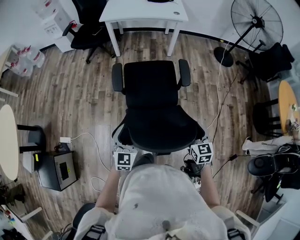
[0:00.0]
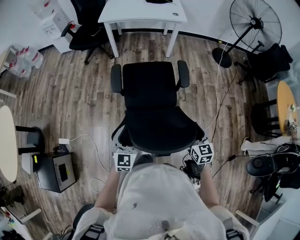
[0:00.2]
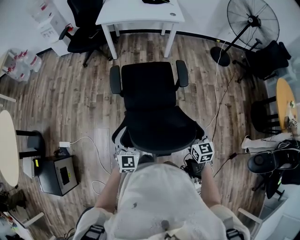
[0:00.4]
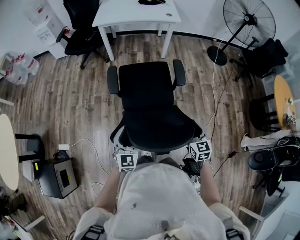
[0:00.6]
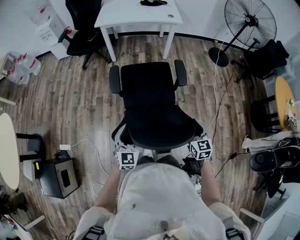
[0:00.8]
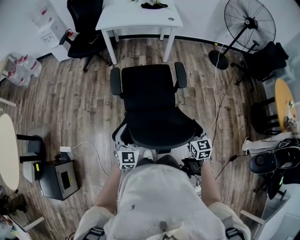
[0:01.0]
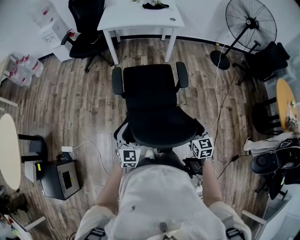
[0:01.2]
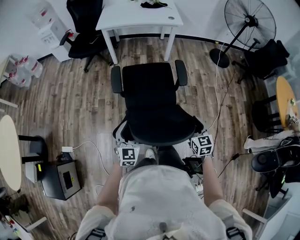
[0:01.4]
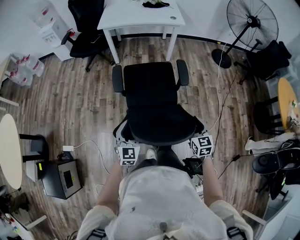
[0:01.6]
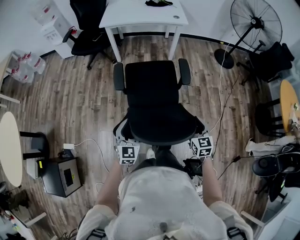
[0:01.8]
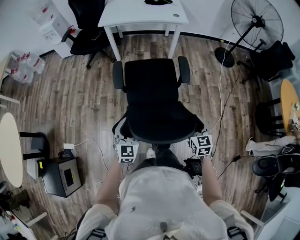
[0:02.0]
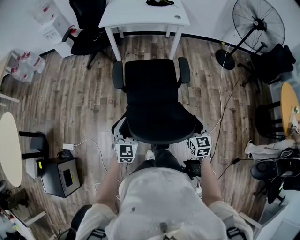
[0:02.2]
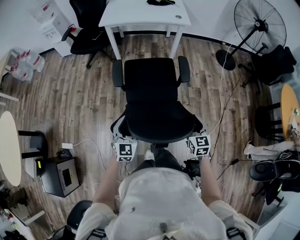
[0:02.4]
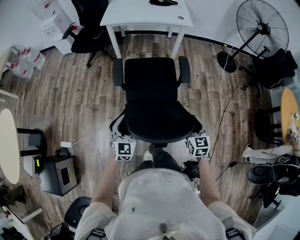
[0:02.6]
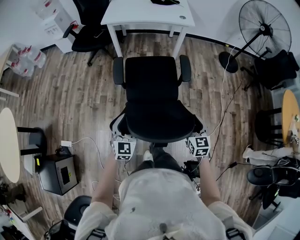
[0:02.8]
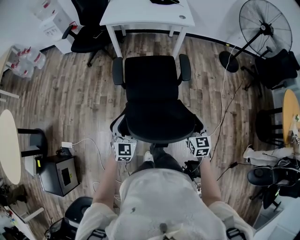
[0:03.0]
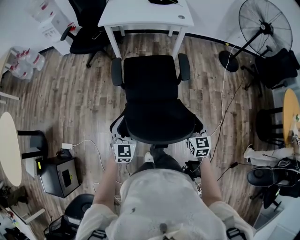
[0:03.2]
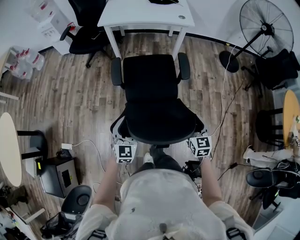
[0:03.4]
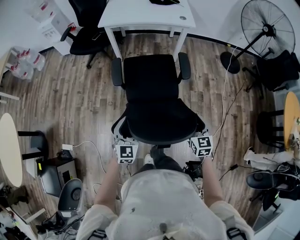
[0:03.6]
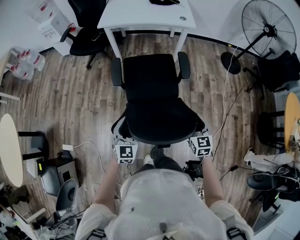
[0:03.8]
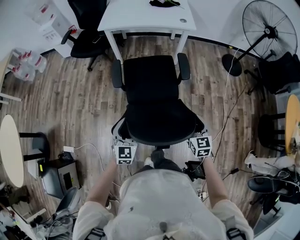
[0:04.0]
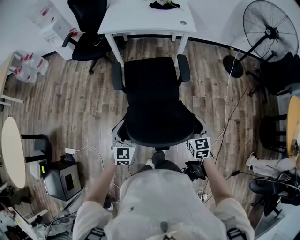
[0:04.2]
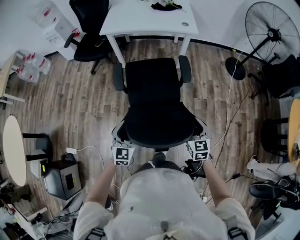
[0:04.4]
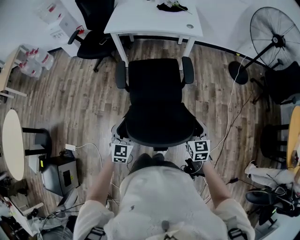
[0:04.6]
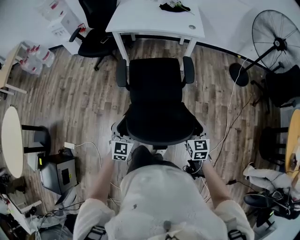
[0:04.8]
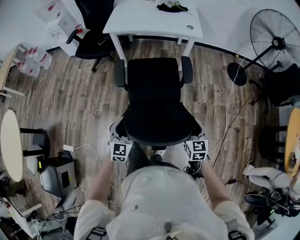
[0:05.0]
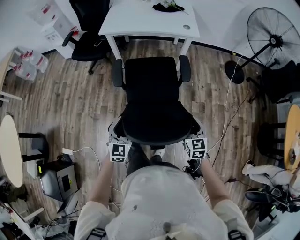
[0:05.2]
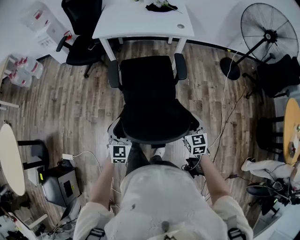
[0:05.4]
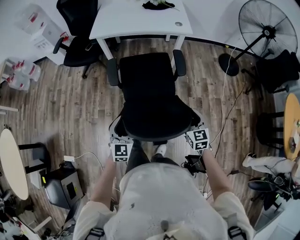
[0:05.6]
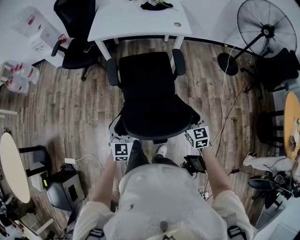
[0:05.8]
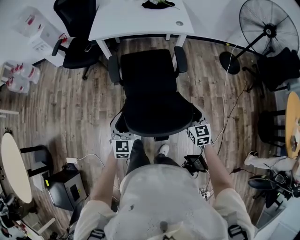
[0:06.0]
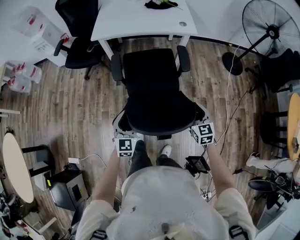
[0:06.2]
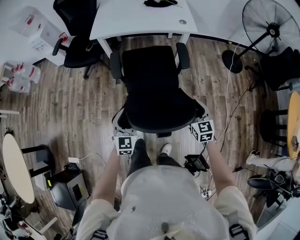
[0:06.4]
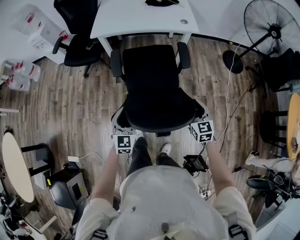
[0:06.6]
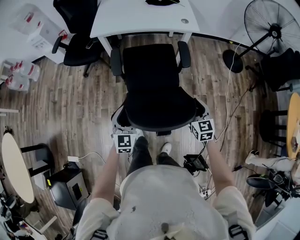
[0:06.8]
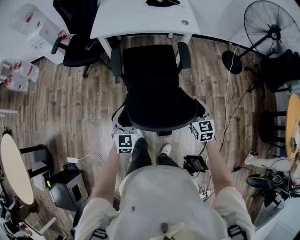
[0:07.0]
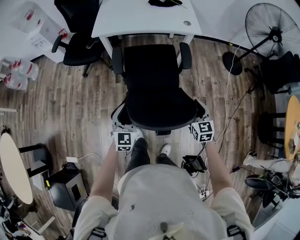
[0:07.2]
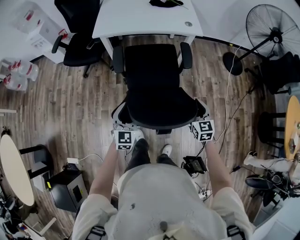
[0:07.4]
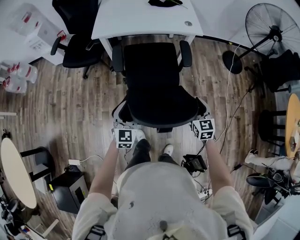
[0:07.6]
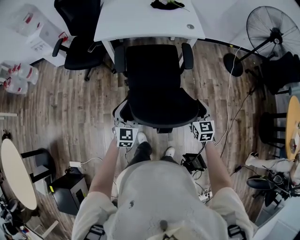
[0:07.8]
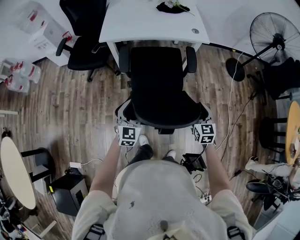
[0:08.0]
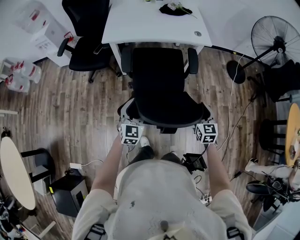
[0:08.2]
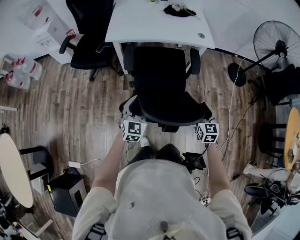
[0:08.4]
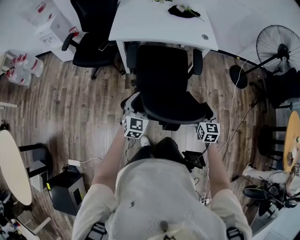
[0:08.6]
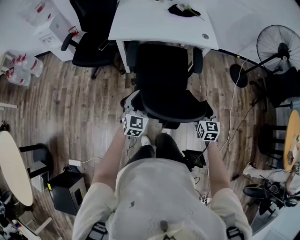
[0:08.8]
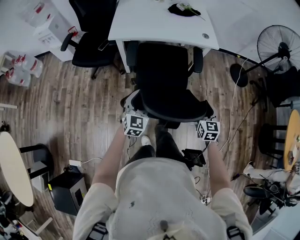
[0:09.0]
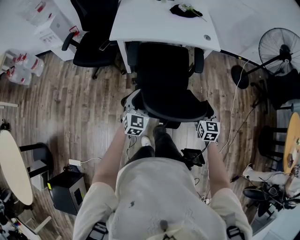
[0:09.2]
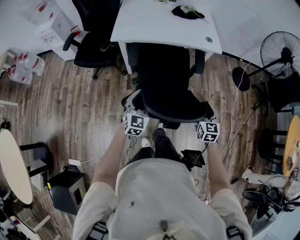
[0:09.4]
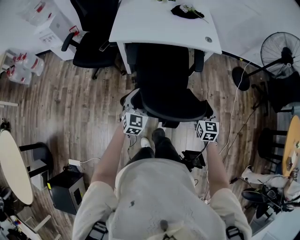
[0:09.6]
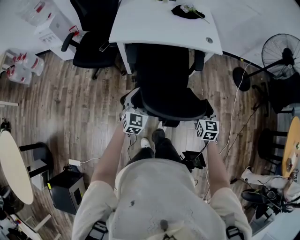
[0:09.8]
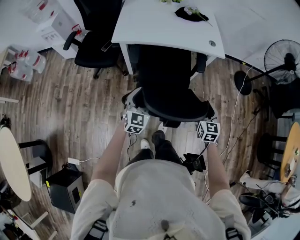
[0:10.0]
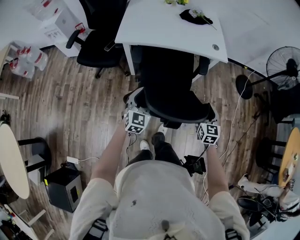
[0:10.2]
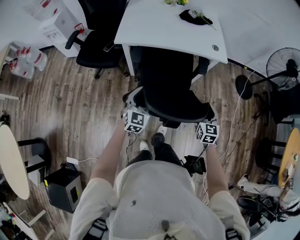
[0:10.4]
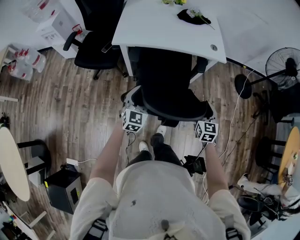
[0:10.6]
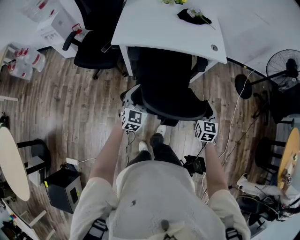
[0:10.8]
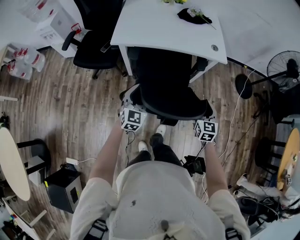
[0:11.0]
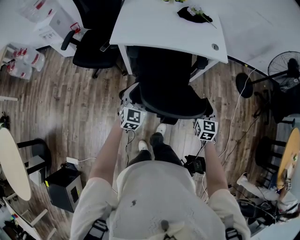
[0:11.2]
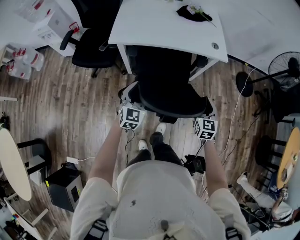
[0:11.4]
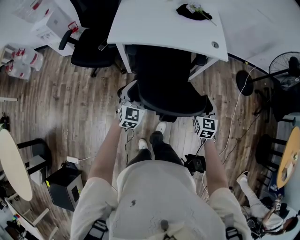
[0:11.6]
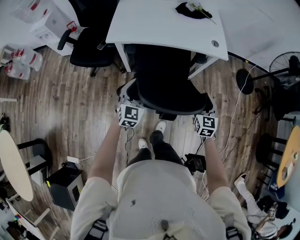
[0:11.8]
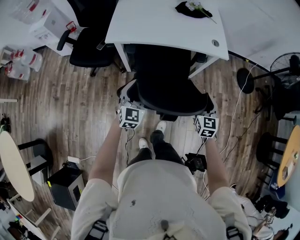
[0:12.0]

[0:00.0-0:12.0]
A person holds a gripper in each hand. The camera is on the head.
0:00.0 to 0:01.6: The grippers both shift forward by roughly 5 cm.
0:01.6 to 0:03.0: The two grippers go approximately 15 cm forward.
0:03.0 to 0:04.4: The two grippers go roughly 15 cm forward and to the right.
0:04.4 to 0:06.0: The two grippers go about 20 cm forward.
0:06.0 to 0:07.6: The two grippers go roughly 15 cm forward and to the left.
0:07.6 to 0:09.0: The right gripper heads to the left and forward, covering about 10 cm, while the left gripper shifts roughly 15 cm forward and to the left.
0:09.0 to 0:10.4: Both grippers travel together forward, approximately 15 cm.
0:10.4 to 0:12.0: Both grippers travel together forward, some 10 cm.

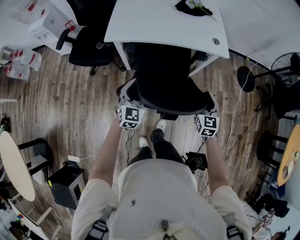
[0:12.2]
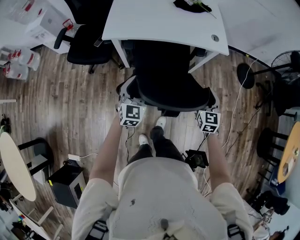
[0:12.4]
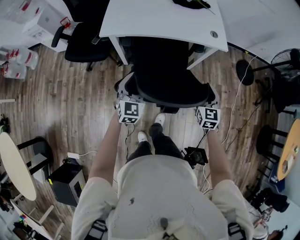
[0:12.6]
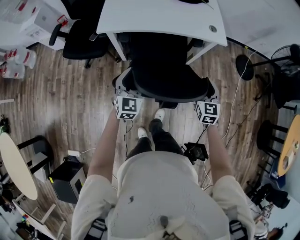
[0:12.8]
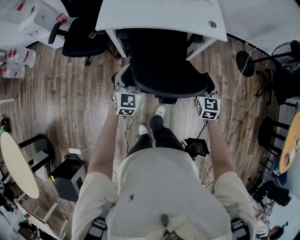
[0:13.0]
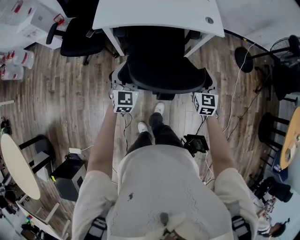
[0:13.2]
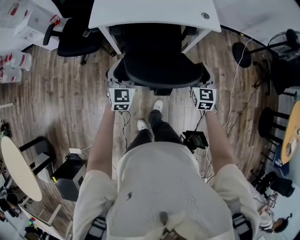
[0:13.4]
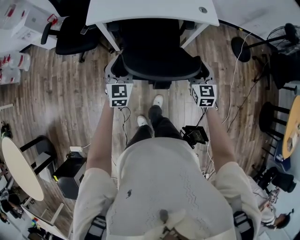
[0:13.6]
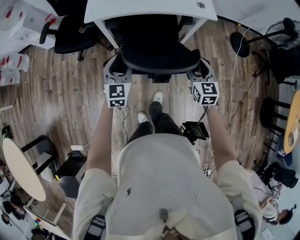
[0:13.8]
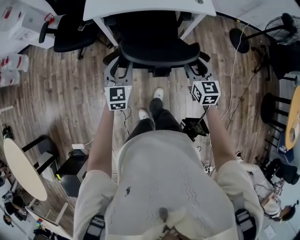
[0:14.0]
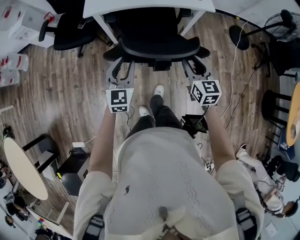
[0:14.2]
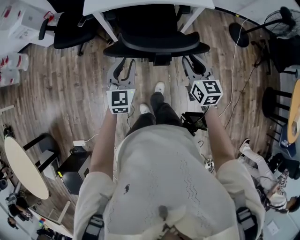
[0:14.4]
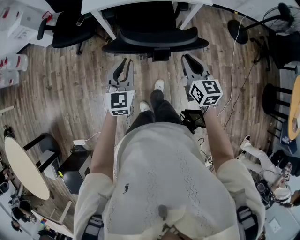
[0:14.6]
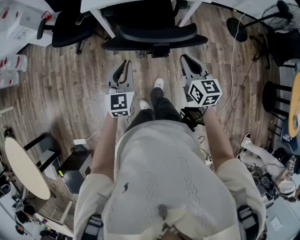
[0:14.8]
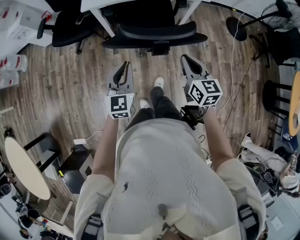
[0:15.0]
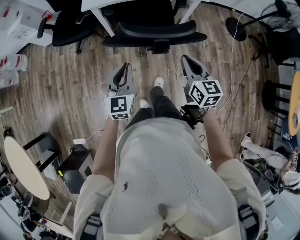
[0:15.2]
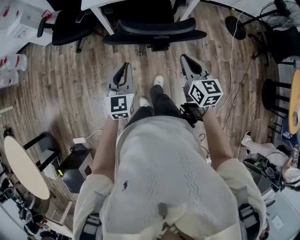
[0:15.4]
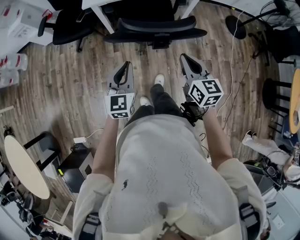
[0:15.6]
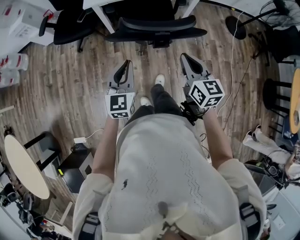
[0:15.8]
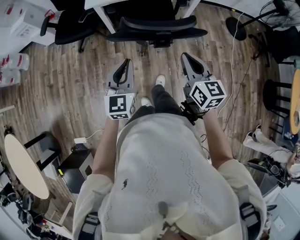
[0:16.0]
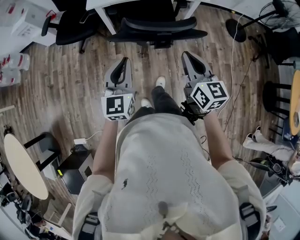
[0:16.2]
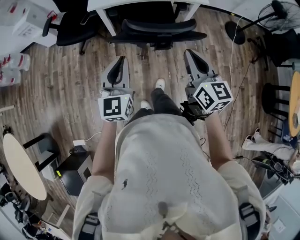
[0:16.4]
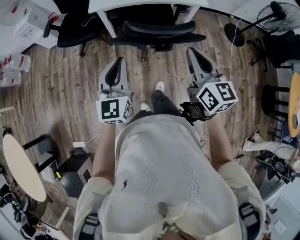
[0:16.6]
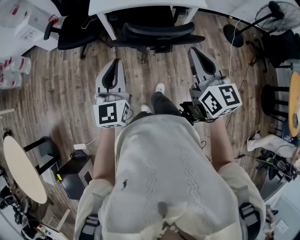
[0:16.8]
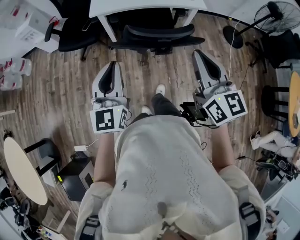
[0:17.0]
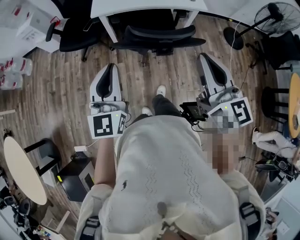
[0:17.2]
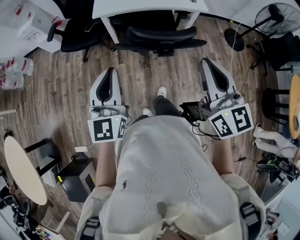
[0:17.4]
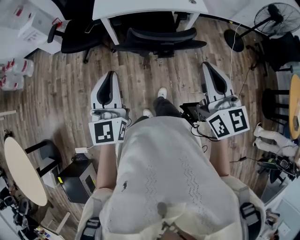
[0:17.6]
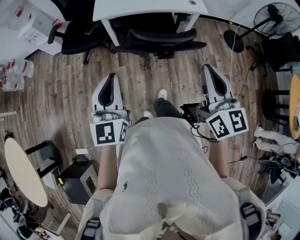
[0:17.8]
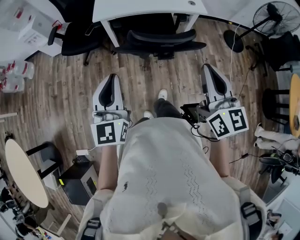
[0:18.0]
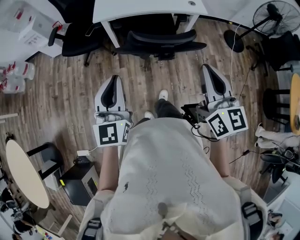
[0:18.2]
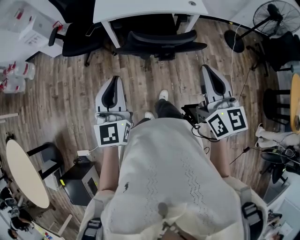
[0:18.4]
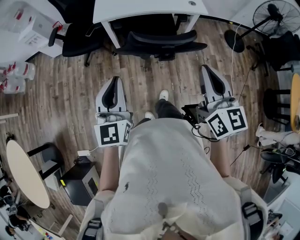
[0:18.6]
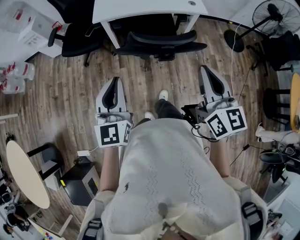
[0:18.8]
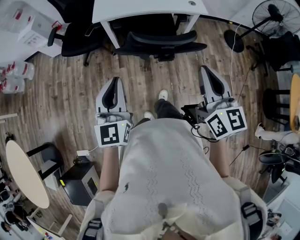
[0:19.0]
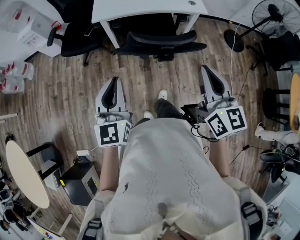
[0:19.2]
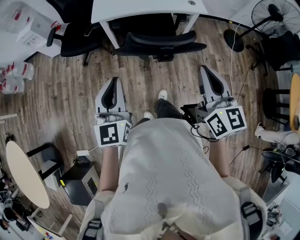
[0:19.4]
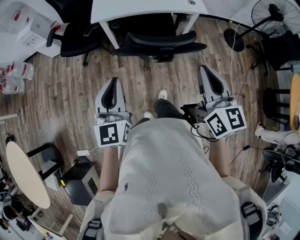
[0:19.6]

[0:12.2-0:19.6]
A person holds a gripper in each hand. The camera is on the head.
0:12.2 to 0:13.6: There are only small adjustments of the grippers.
0:13.6 to 0:15.2: The grippers both shift backward by about 25 cm. The right gripper swivels roughly 20 degrees, and closes its fingers. Meanwhile the left gripper closes its fingers.
0:15.2 to 0:16.6: The grippers both shift upward and backward by some 15 cm.
0:16.6 to 0:18.2: The right gripper travels upward and backward by roughly 10 cm, while the left gripper goes some 5 cm upward.
0:18.2 to 0:19.6: The grippers move only a little.

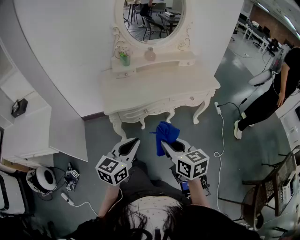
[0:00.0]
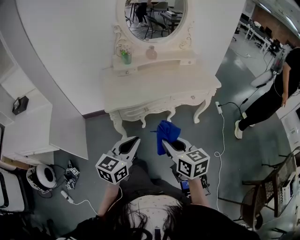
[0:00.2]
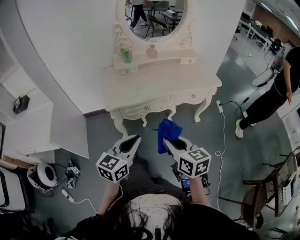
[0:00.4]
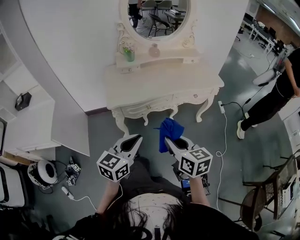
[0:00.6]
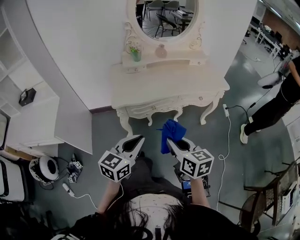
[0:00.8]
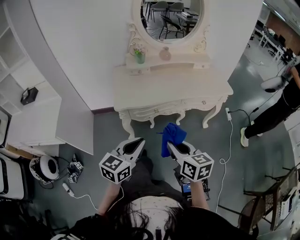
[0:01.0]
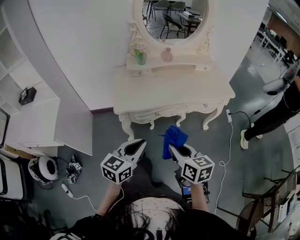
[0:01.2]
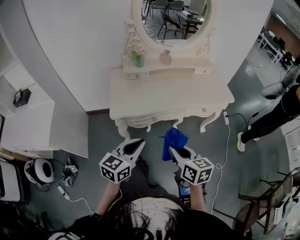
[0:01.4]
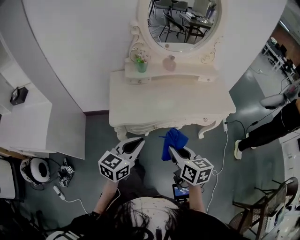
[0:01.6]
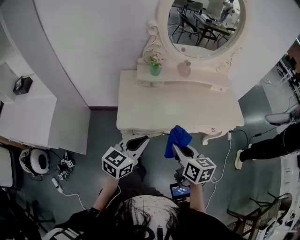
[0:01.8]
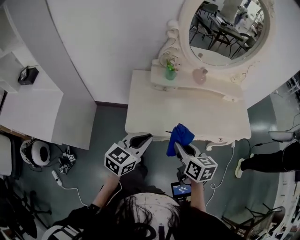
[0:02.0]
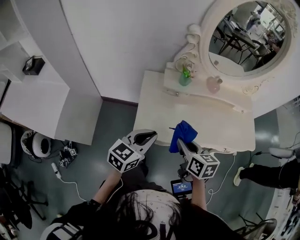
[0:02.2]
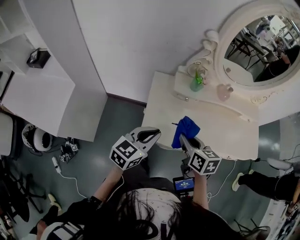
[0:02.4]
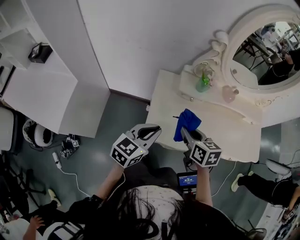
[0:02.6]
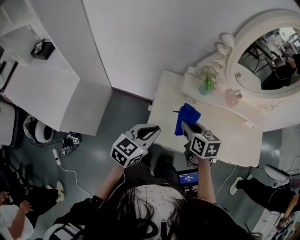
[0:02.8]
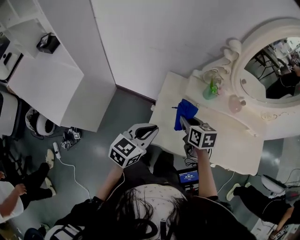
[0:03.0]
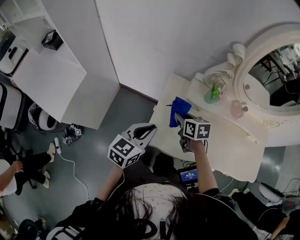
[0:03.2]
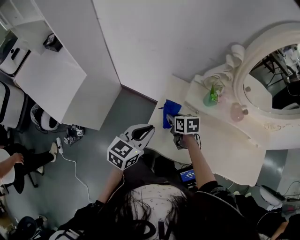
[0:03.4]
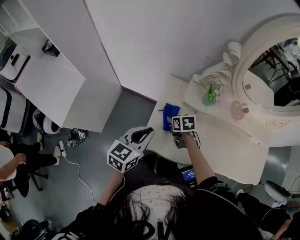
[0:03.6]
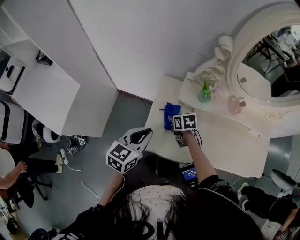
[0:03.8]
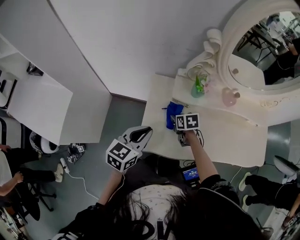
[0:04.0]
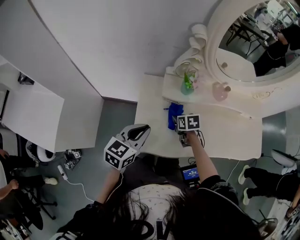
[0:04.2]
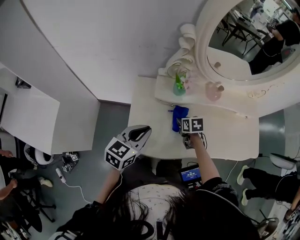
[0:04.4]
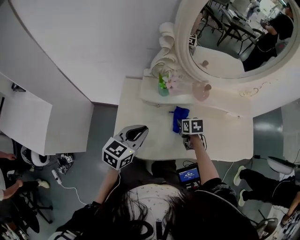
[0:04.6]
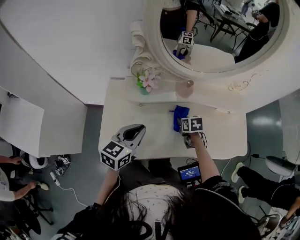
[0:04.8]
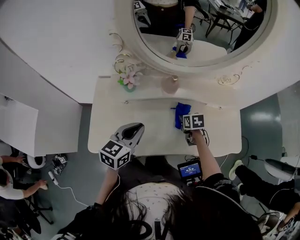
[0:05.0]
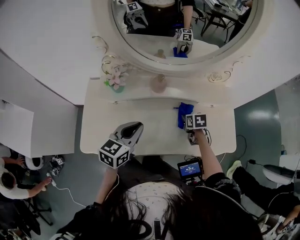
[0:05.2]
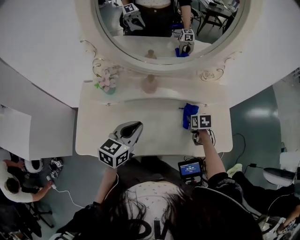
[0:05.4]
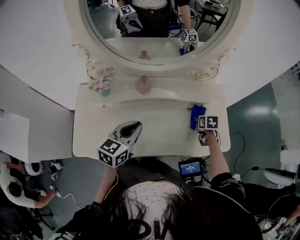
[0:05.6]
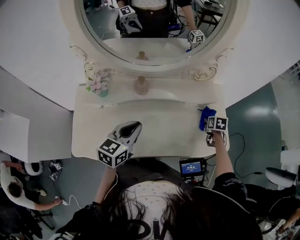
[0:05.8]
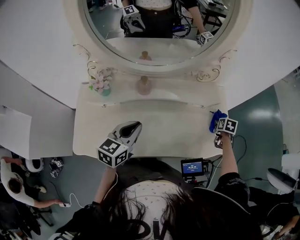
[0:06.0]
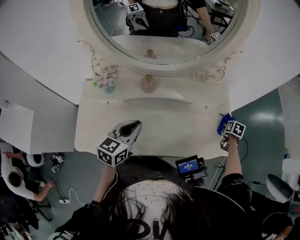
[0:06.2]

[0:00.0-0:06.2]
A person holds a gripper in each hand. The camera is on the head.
0:00.0 to 0:01.6: The two grippers go roughly 15 cm forward.
0:01.6 to 0:03.2: The right gripper shifts by approximately 40 cm, and turns by about 30 degrees. Meanwhile the left gripper changes place by approximately 30 cm, and changes its angle by approximately 20 degrees.
0:03.2 to 0:04.6: The left gripper heads to the right, covering approximately 15 cm, while the right gripper is displaced to the right by roughly 25 cm, and changes its angle by roughly 20 degrees.
0:04.6 to 0:06.2: The right gripper travels to the right by roughly 60 cm, and changes its angle by approximately 40 degrees. The left gripper is displaced to the right by about 20 cm.
